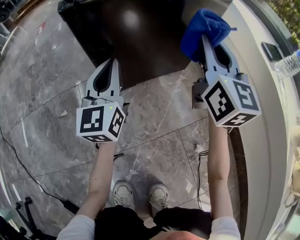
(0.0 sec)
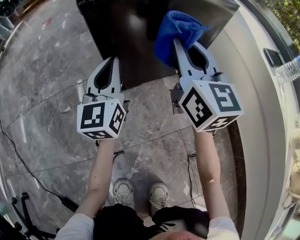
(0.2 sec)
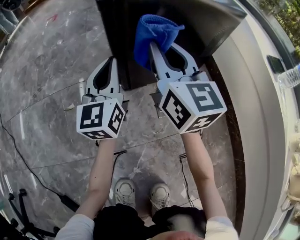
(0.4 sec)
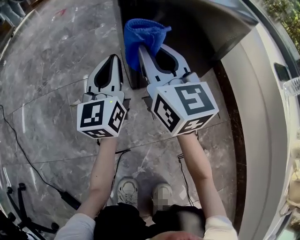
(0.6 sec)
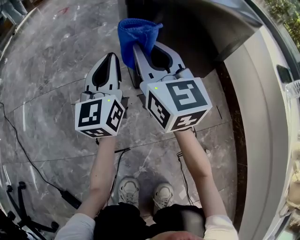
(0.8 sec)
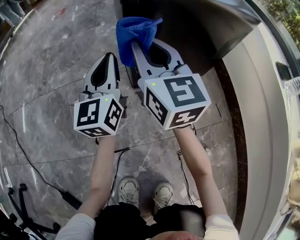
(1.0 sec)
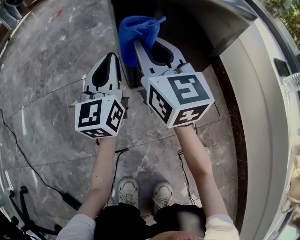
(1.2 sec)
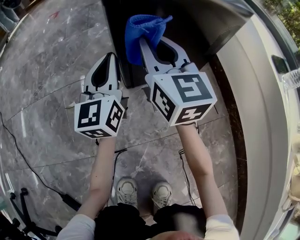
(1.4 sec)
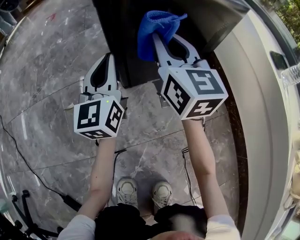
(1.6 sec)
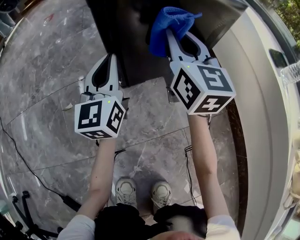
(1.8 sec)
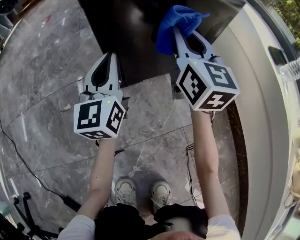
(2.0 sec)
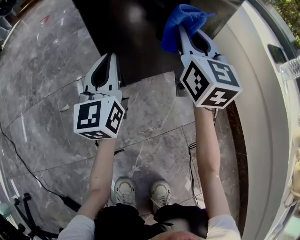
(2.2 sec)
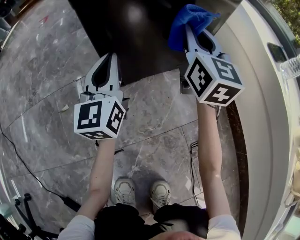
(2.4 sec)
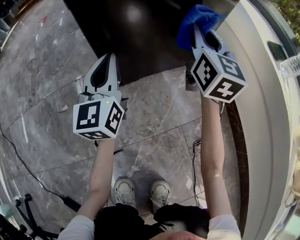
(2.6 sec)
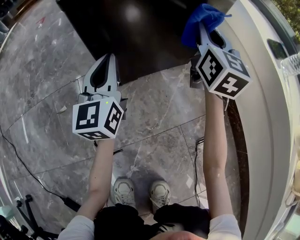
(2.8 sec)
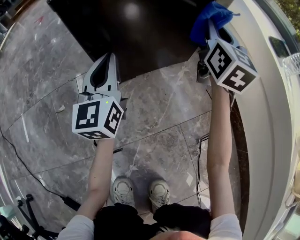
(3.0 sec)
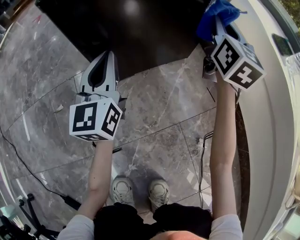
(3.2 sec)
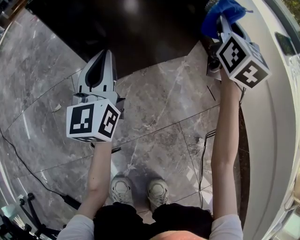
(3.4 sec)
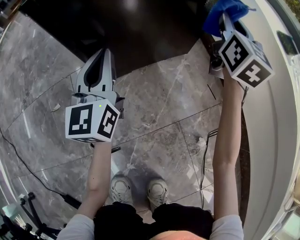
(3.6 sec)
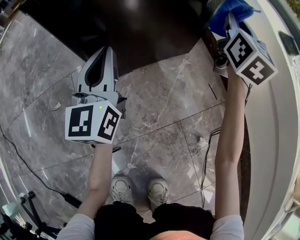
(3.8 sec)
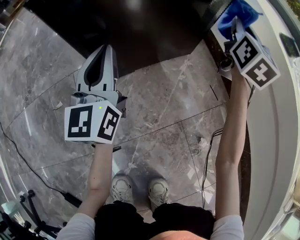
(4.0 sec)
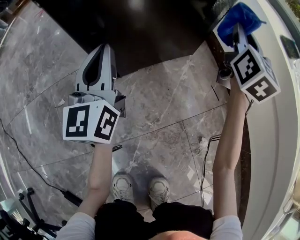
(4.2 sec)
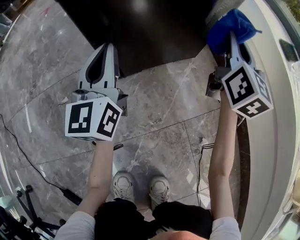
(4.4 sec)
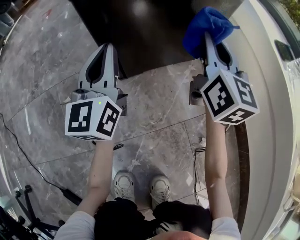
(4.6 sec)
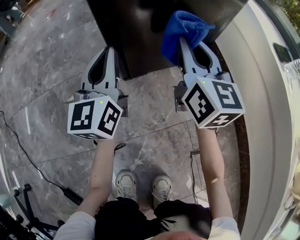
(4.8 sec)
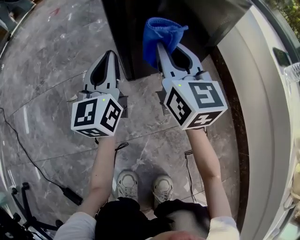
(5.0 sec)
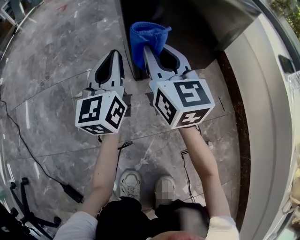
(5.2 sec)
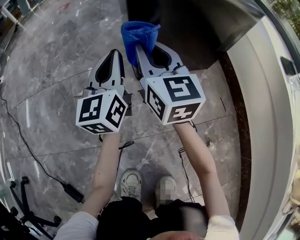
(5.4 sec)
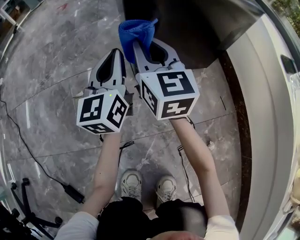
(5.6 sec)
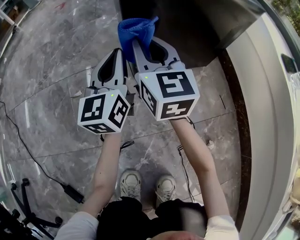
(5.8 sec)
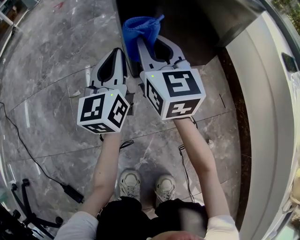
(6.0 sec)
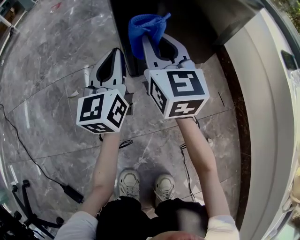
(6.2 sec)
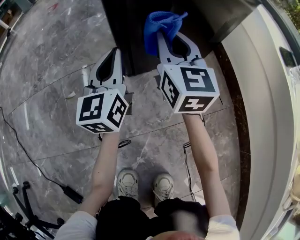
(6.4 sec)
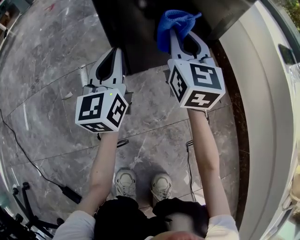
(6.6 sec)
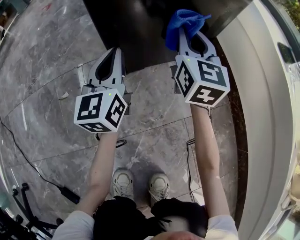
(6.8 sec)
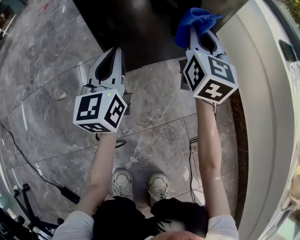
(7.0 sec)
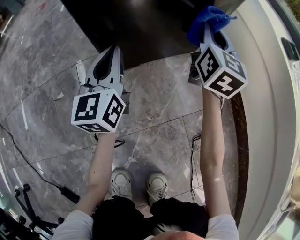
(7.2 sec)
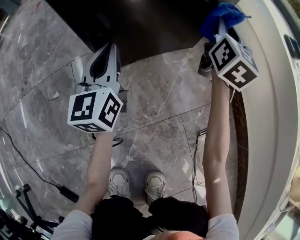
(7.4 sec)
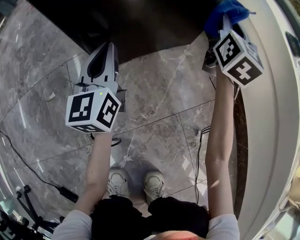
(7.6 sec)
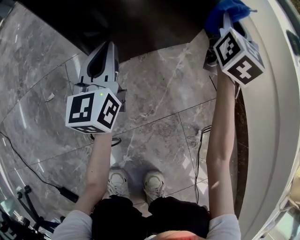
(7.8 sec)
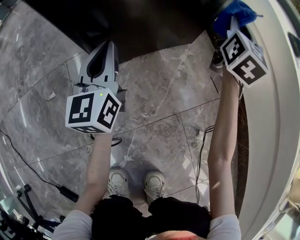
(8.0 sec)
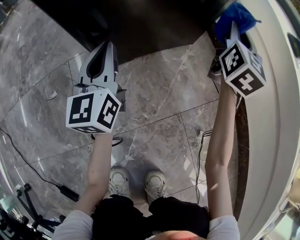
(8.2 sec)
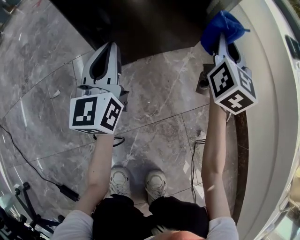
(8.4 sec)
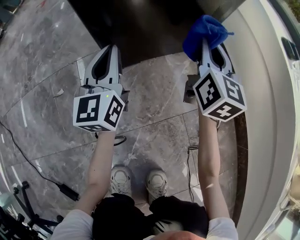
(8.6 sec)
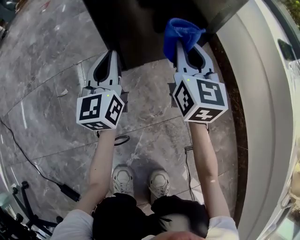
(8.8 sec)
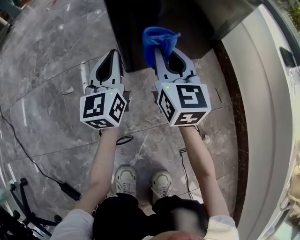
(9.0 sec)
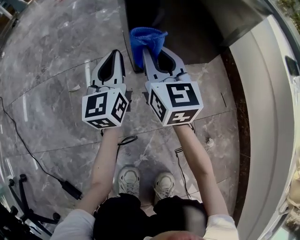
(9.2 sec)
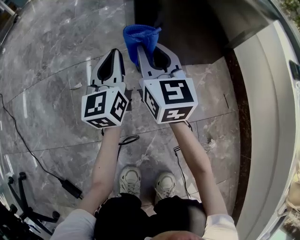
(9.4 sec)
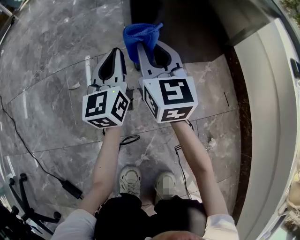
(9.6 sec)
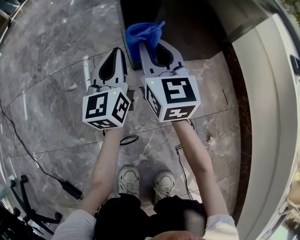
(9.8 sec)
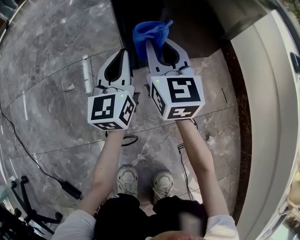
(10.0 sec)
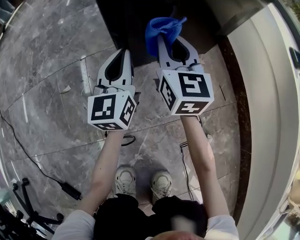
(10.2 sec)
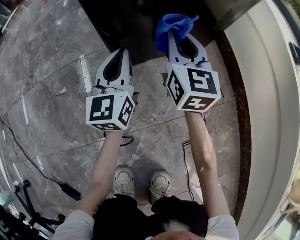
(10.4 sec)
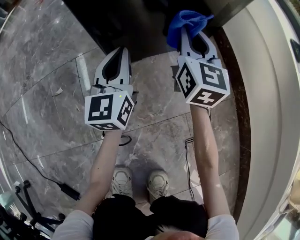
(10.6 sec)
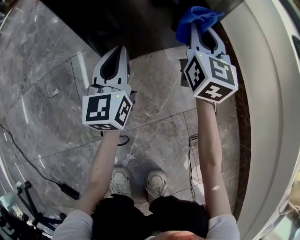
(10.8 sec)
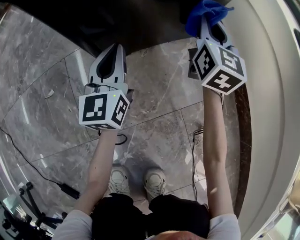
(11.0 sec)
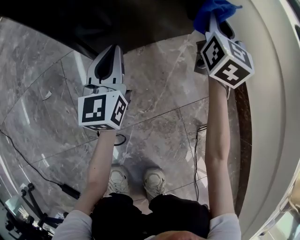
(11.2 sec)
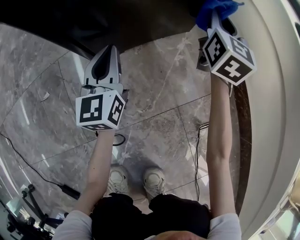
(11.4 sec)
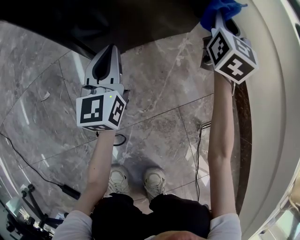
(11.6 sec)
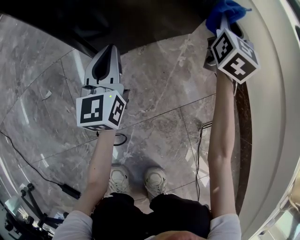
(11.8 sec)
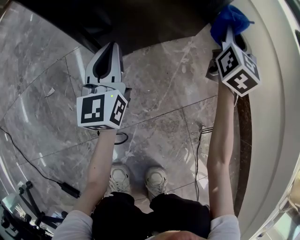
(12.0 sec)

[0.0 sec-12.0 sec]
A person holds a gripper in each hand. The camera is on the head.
0.0 sec to 1.6 sec: The left gripper moves to the left, roughly 5 cm. The right gripper shifts some 15 cm to the left.
1.6 sec to 3.0 sec: The left gripper shifts some 5 cm to the right. Meanwhile the right gripper shifts roughly 20 cm to the right, and swivels approximately 30 degrees.
3.0 sec to 4.4 sec: The right gripper reaches some 10 cm to the right, then returns.
4.4 sec to 6.0 sec: The right gripper shifts about 30 cm to the left, and swivels approximately 30 degrees. Meanwhile the left gripper is displaced to the left by approximately 5 cm.
6.0 sec to 7.6 sec: The right gripper goes roughly 30 cm to the right, and swivels some 40 degrees; the left gripper goes about 10 cm to the right and downward.
7.6 sec to 9.0 sec: The left gripper travels to the left by about 10 cm; the right gripper travels to the left and backward by approximately 30 cm, and swivels approximately 30 degrees.
9.0 sec to 10.4 sec: The grippers both shift to the right by some 5 cm.
10.4 sec to 12.0 sec: The right gripper heads to the right, covering about 20 cm, and swivels about 30 degrees.

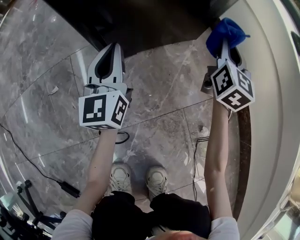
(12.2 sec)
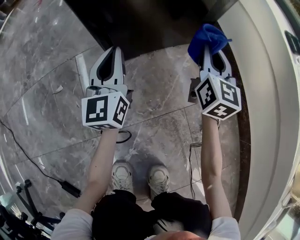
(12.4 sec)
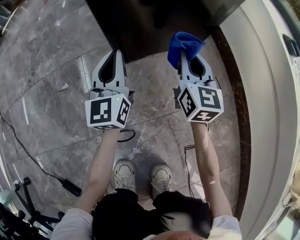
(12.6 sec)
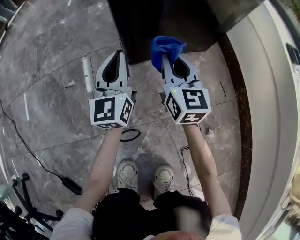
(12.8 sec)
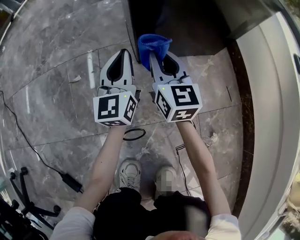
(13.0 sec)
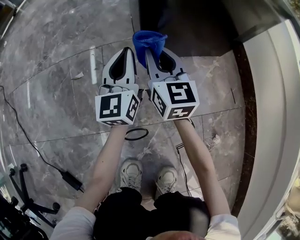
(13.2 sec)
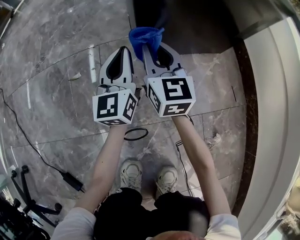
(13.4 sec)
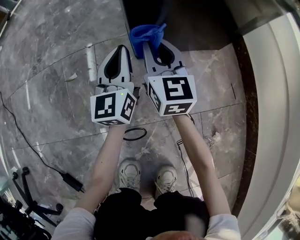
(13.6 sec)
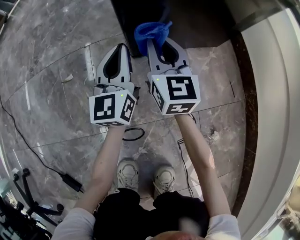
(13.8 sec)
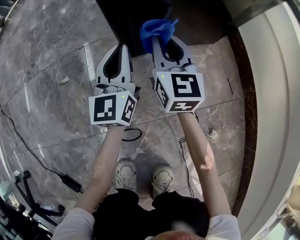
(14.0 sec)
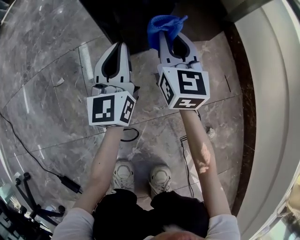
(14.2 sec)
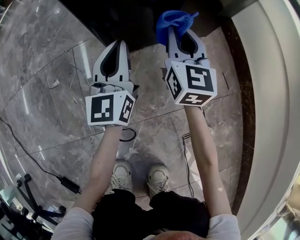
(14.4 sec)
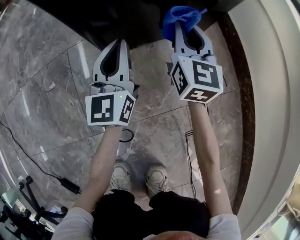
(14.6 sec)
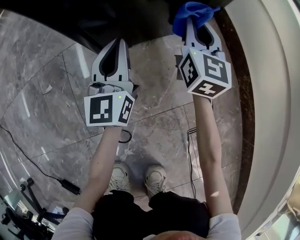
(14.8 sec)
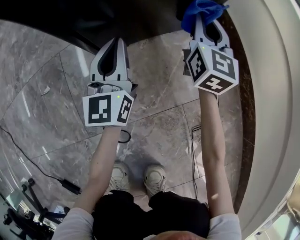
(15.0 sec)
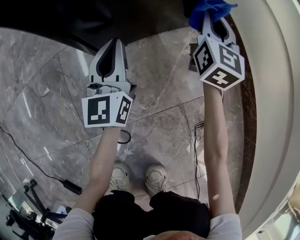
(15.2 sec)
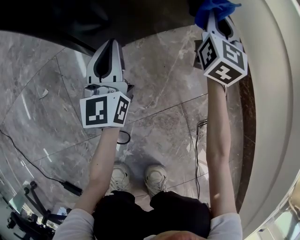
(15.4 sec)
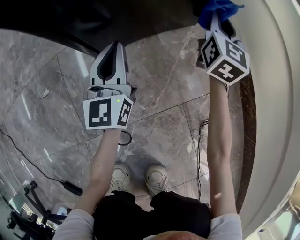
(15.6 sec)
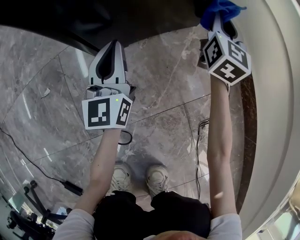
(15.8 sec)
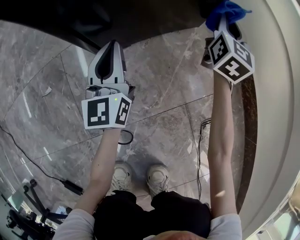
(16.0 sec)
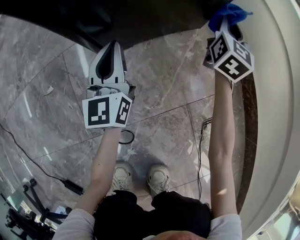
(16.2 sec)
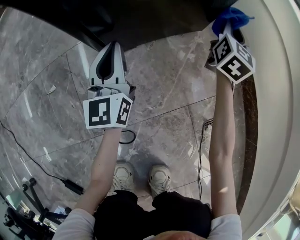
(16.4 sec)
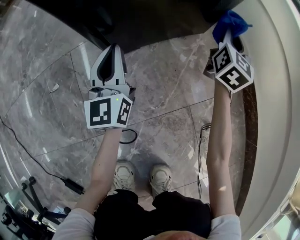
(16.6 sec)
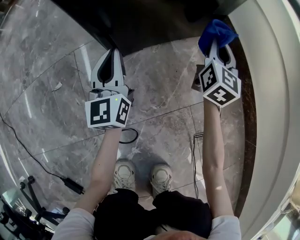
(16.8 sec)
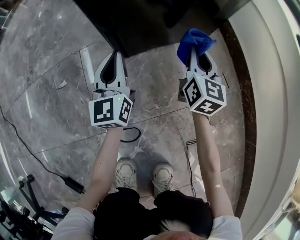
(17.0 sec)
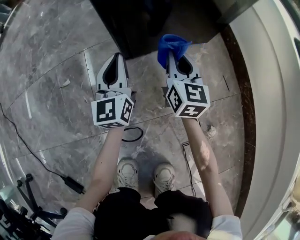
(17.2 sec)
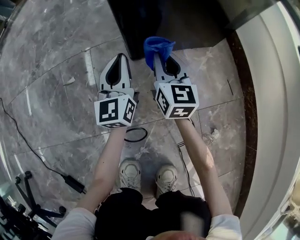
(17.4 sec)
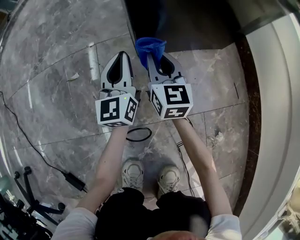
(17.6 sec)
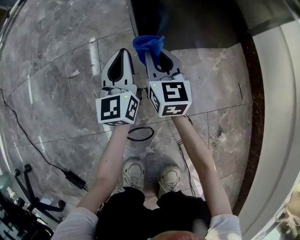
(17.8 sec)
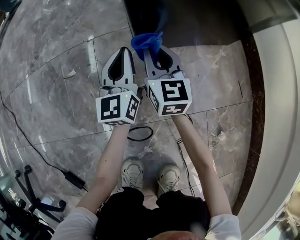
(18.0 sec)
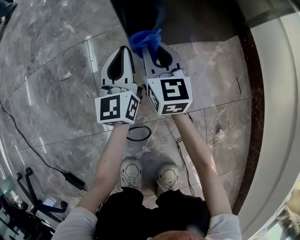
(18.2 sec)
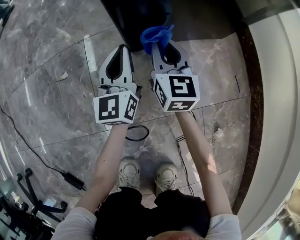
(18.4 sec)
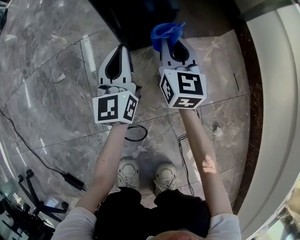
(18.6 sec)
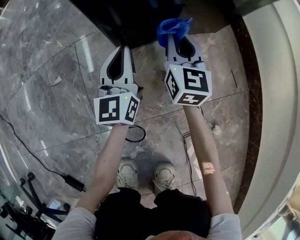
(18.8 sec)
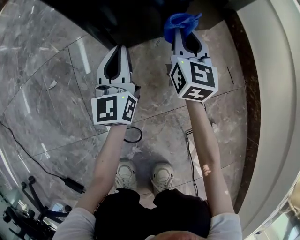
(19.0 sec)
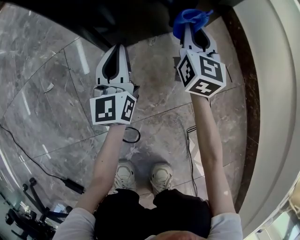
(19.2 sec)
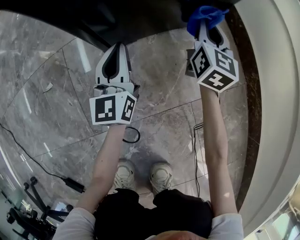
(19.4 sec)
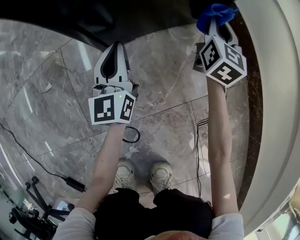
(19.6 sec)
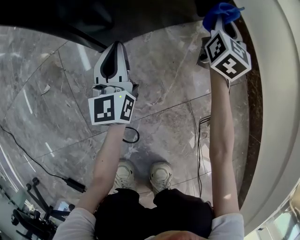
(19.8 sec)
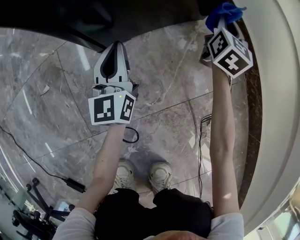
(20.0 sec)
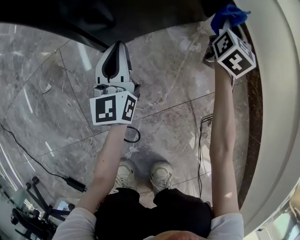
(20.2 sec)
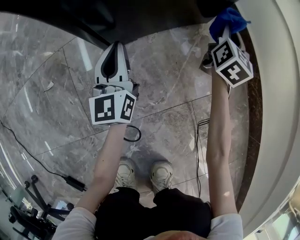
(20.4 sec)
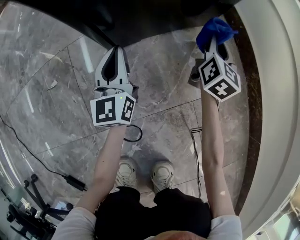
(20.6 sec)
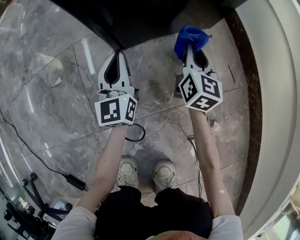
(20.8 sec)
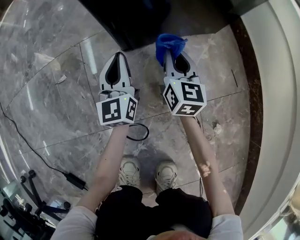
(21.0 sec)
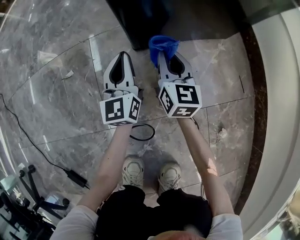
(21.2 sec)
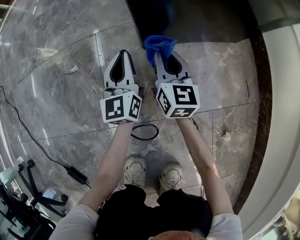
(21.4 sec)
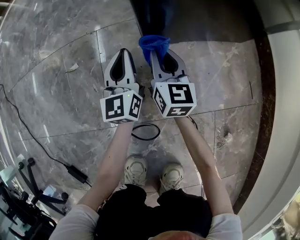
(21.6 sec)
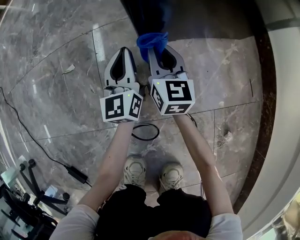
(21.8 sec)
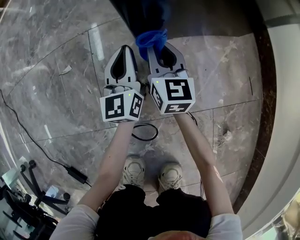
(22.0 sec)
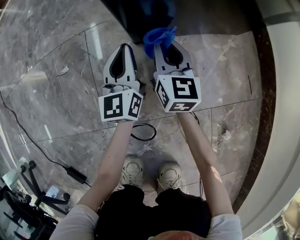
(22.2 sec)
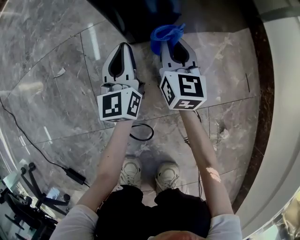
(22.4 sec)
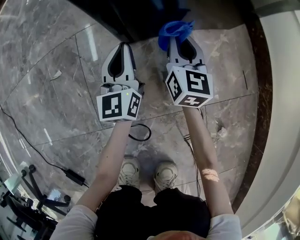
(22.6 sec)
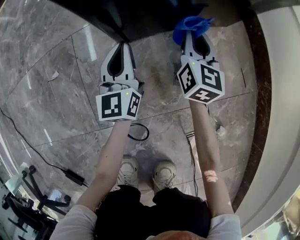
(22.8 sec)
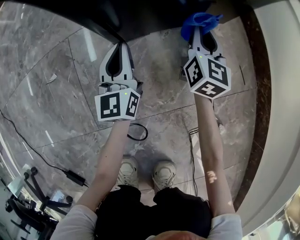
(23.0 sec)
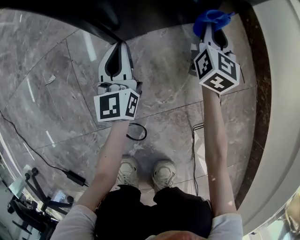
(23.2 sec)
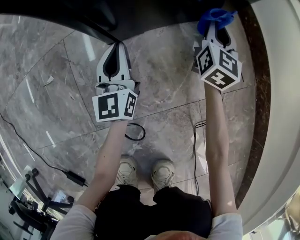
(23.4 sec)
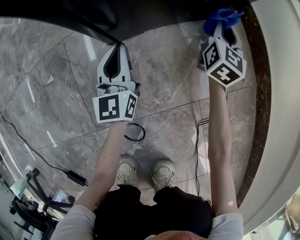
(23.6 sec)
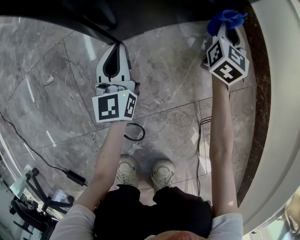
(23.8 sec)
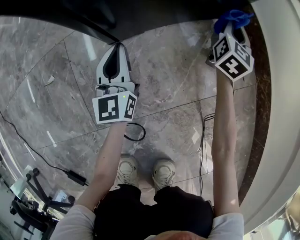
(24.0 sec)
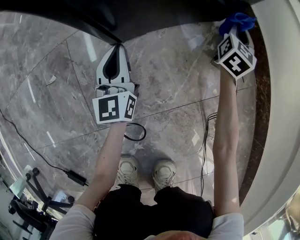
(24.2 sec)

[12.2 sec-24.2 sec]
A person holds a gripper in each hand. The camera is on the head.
12.2 sec to 13.8 sec: The right gripper is displaced to the left by about 30 cm, and changes its angle by about 30 degrees. Meanwhile the left gripper heads to the left, covering some 5 cm.
13.8 sec to 15.2 sec: The right gripper goes some 25 cm to the right, and swivels roughly 30 degrees; the left gripper heads to the right, covering roughly 10 cm.
15.2 sec to 16.6 sec: The right gripper goes approximately 5 cm to the right. Meanwhile the left gripper shifts by about 5 cm.
16.6 sec to 18.2 sec: The left gripper moves about 10 cm. The right gripper ends up roughly 35 cm from where it was, and turns by approximately 40 degrees.
18.2 sec to 19.8 sec: The right gripper travels to the right by some 30 cm, and changes its angle by about 40 degrees, while the left gripper is displaced to the right by approximately 10 cm.
19.8 sec to 21.2 sec: The right gripper moves to the left and backward, roughly 30 cm, and swivels about 30 degrees, while the left gripper heads to the left, covering some 10 cm.
21.2 sec to 22.6 sec: The right gripper shifts some 5 cm to the right, while the left gripper shifts by approximately 5 cm.
22.6 sec to 24.2 sec: The right gripper heads to the right, covering some 25 cm, and rotates roughly 30 degrees.
